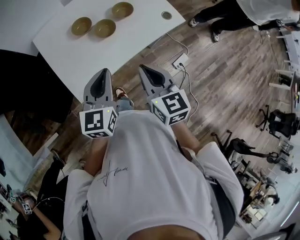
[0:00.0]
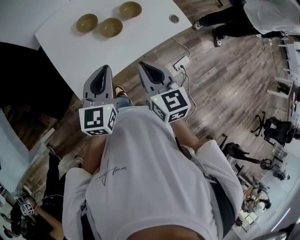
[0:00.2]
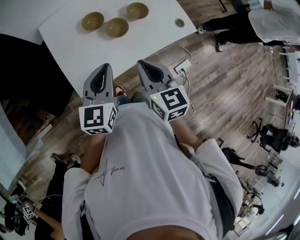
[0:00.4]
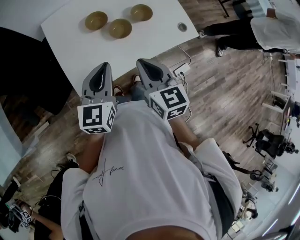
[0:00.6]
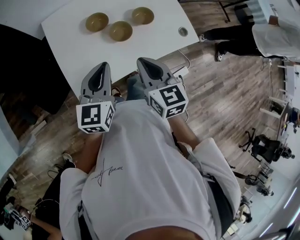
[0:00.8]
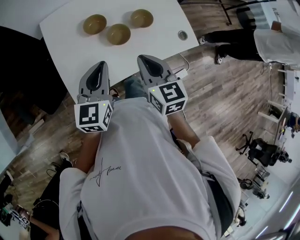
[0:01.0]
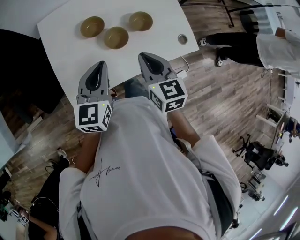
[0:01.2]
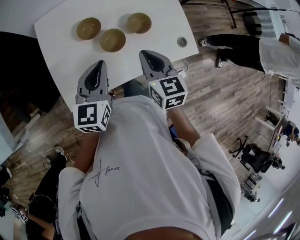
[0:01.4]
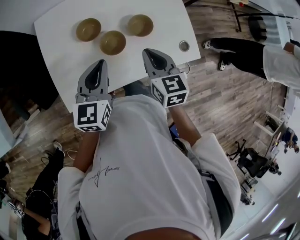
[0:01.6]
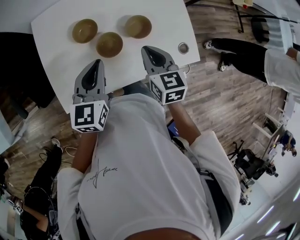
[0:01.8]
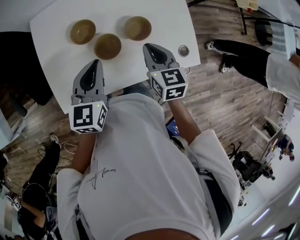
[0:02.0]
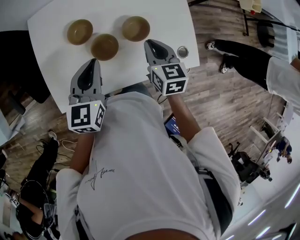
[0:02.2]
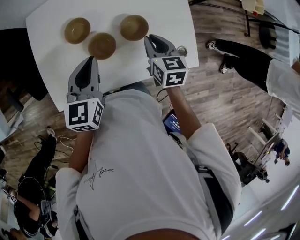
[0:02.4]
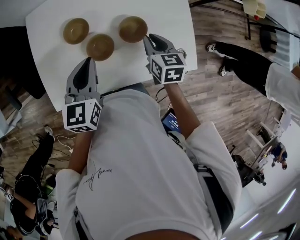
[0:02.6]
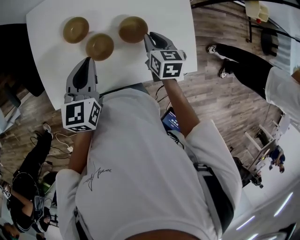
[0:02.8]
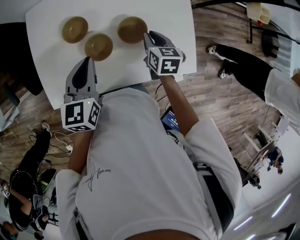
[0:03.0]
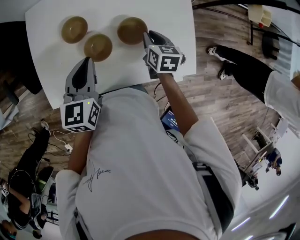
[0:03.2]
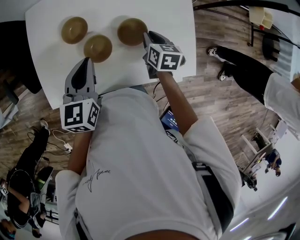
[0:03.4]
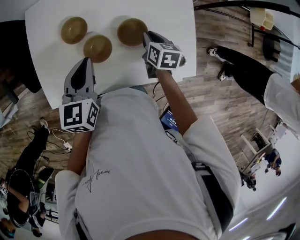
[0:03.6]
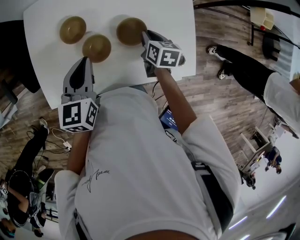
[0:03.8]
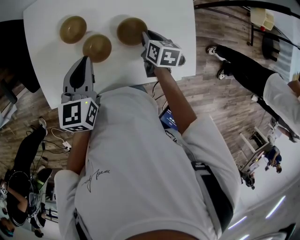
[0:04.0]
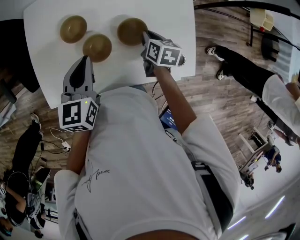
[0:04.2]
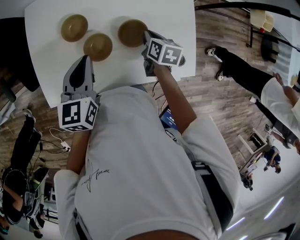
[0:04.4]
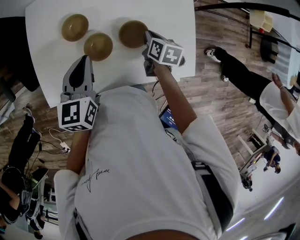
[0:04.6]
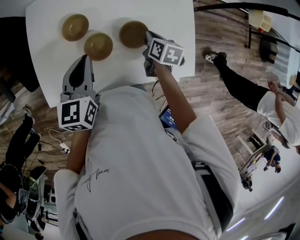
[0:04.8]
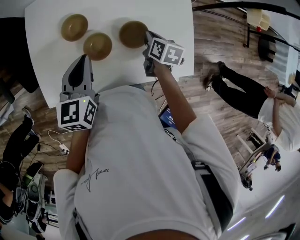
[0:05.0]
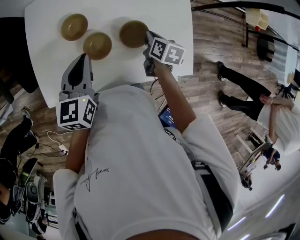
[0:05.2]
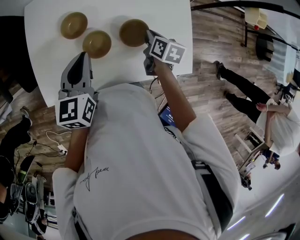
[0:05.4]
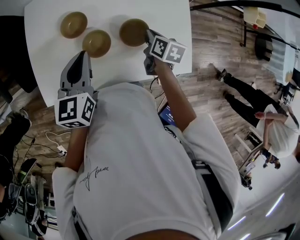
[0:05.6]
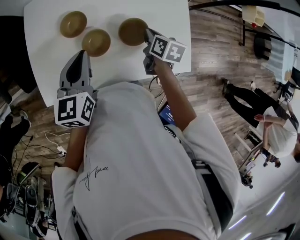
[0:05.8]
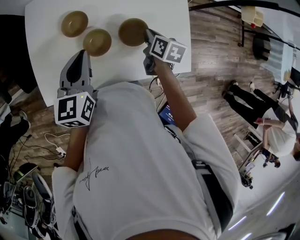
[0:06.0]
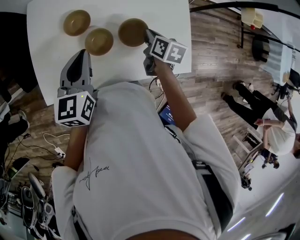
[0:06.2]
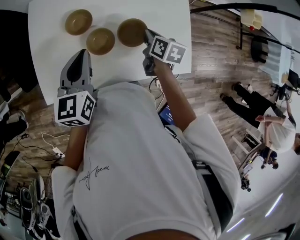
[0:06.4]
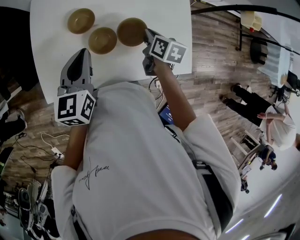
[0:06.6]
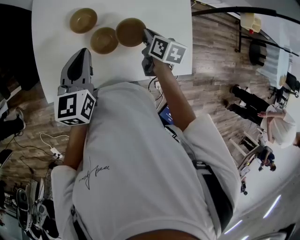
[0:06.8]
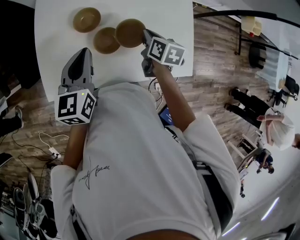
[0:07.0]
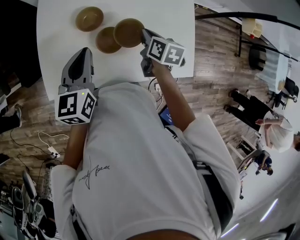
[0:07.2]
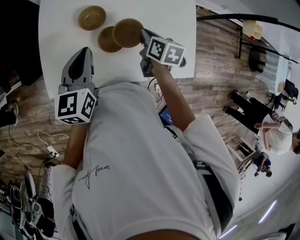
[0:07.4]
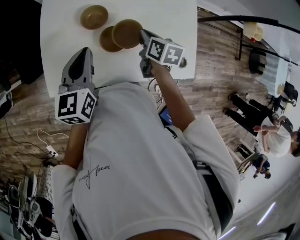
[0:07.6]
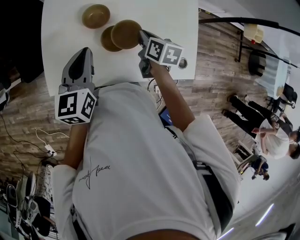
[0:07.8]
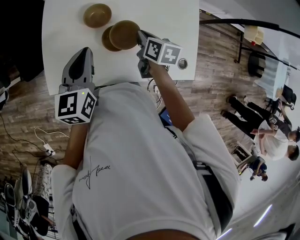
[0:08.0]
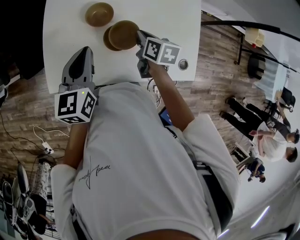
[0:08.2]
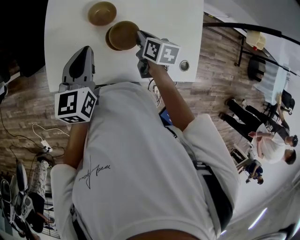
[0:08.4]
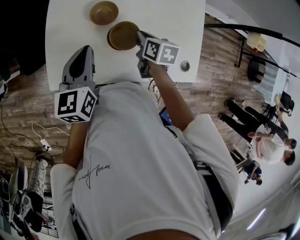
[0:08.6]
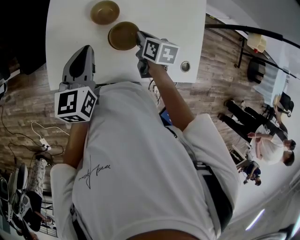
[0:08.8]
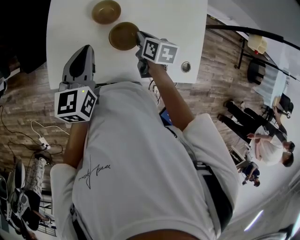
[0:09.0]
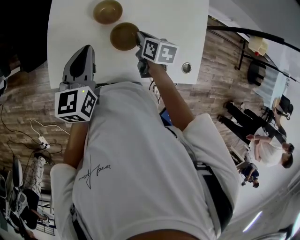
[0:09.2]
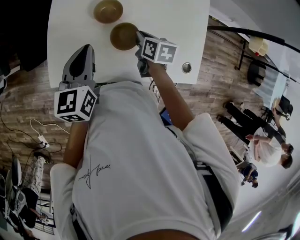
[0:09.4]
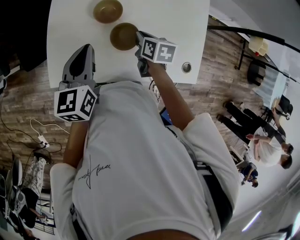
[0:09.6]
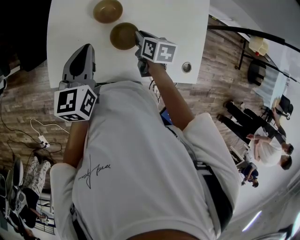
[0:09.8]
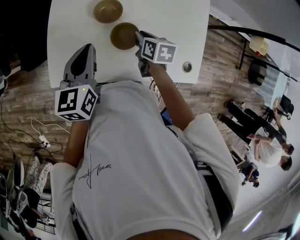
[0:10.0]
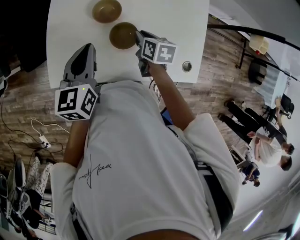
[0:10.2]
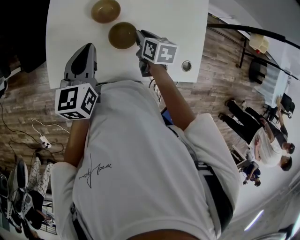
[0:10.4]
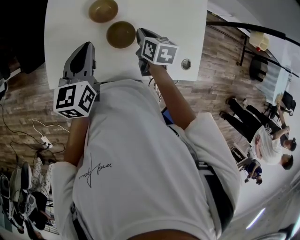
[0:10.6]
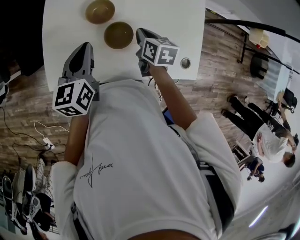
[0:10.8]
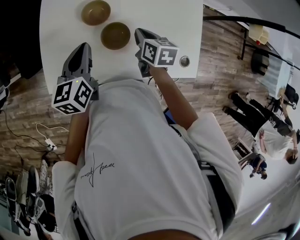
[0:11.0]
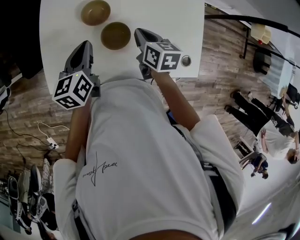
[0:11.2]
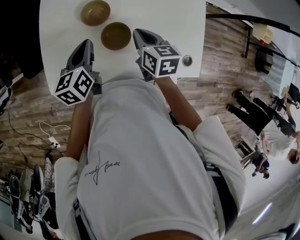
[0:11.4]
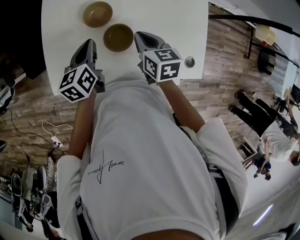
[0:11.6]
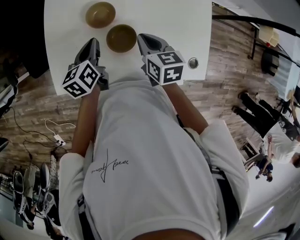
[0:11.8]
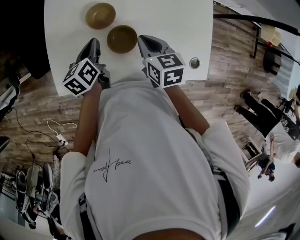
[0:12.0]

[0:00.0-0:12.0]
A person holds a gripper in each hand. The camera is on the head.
0:00.0 to 0:01.6: The grippers both shift forward by approximately 20 cm.
0:01.6 to 0:03.0: The left gripper changes place by approximately 5 cm; the right gripper moves downward, forward and to the right, approximately 20 cm.
0:03.0 to 0:06.0: The grippers make only small movements.
0:06.0 to 0:07.6: The right gripper is displaced to the left by about 10 cm. Meanwhile the left gripper travels to the left by some 5 cm.
0:07.6 to 0:09.0: The right gripper moves roughly 5 cm.
0:09.0 to 0:10.4: The two grippers keep their place.
0:10.4 to 0:12.0: The right gripper goes roughly 5 cm upward. The left gripper goes approximately 10 cm downward, and rotates approximately 20 degrees.

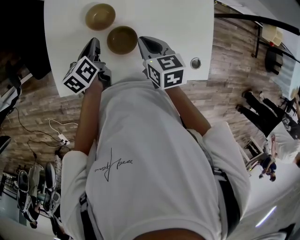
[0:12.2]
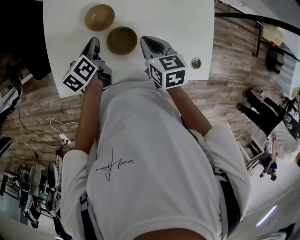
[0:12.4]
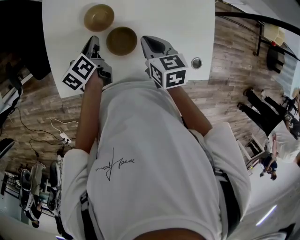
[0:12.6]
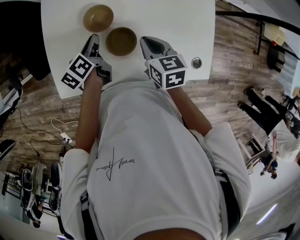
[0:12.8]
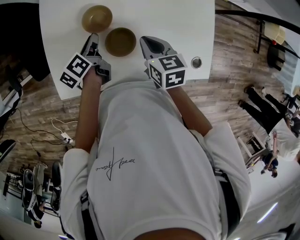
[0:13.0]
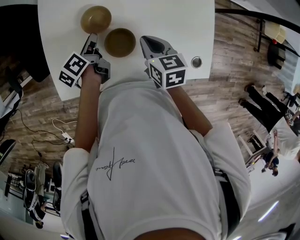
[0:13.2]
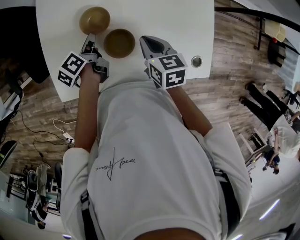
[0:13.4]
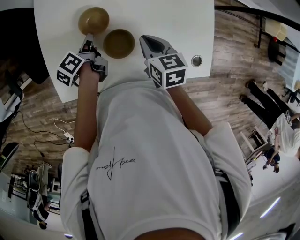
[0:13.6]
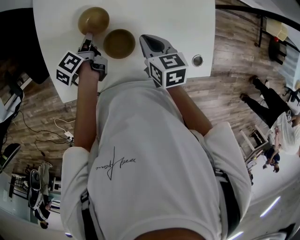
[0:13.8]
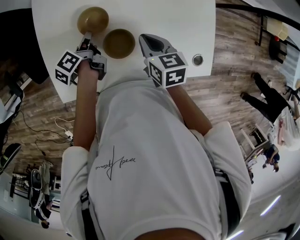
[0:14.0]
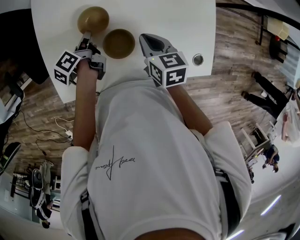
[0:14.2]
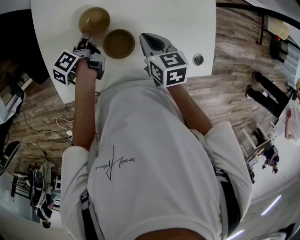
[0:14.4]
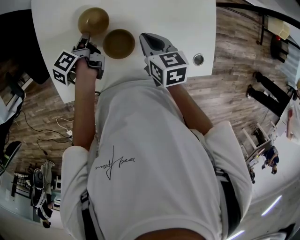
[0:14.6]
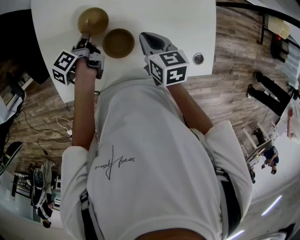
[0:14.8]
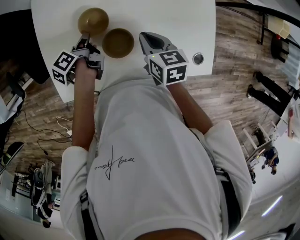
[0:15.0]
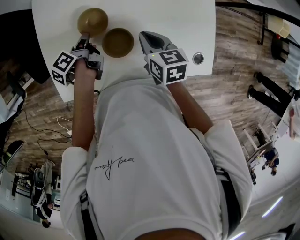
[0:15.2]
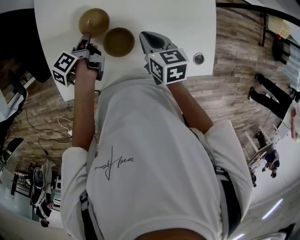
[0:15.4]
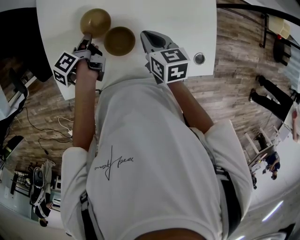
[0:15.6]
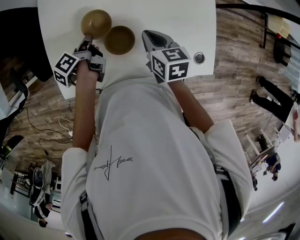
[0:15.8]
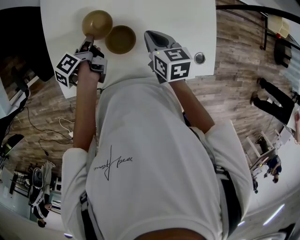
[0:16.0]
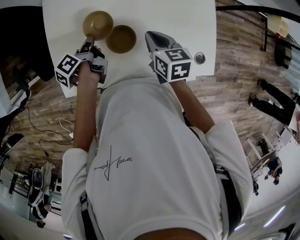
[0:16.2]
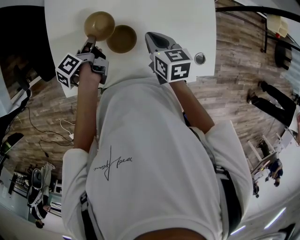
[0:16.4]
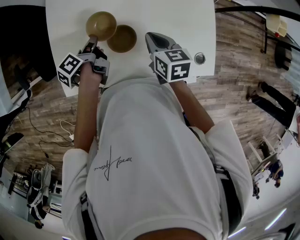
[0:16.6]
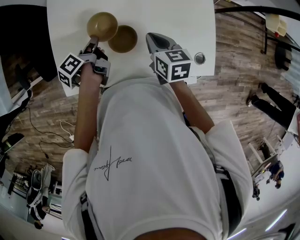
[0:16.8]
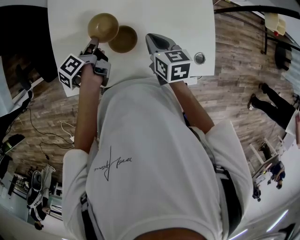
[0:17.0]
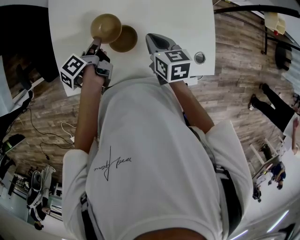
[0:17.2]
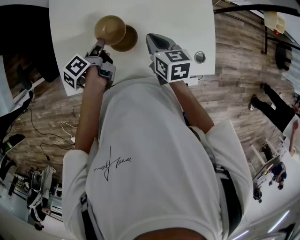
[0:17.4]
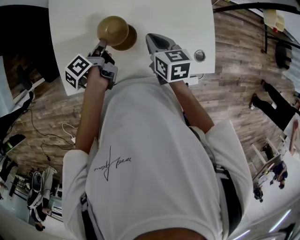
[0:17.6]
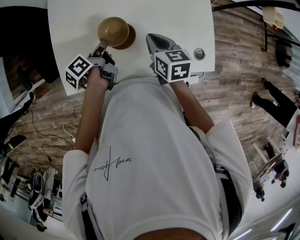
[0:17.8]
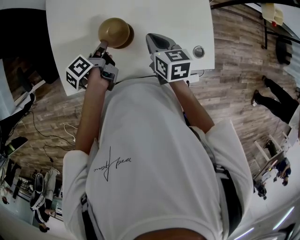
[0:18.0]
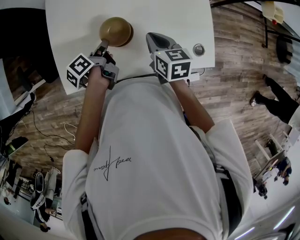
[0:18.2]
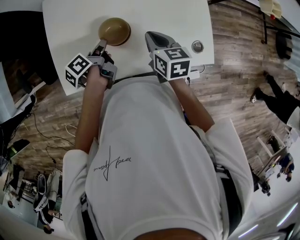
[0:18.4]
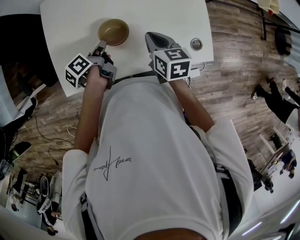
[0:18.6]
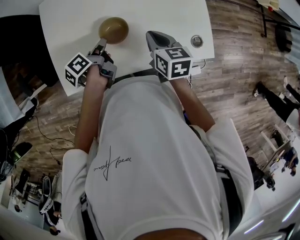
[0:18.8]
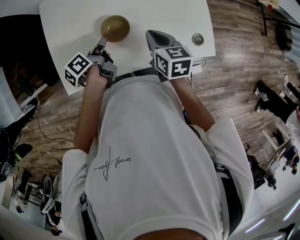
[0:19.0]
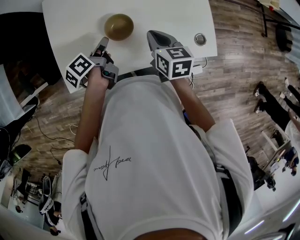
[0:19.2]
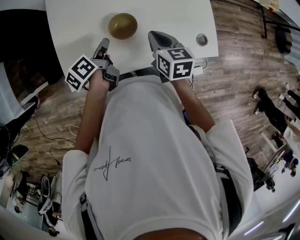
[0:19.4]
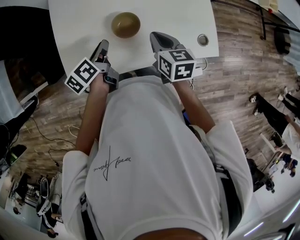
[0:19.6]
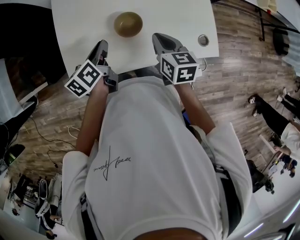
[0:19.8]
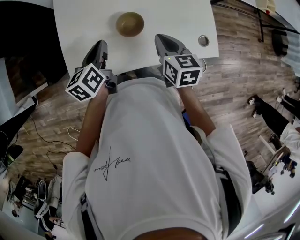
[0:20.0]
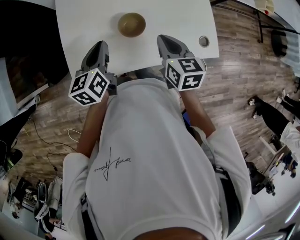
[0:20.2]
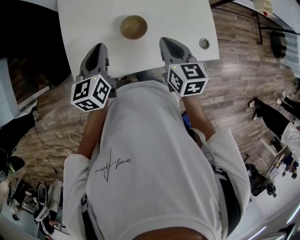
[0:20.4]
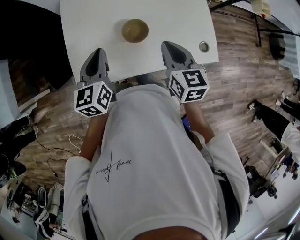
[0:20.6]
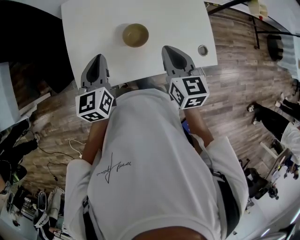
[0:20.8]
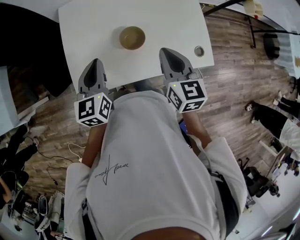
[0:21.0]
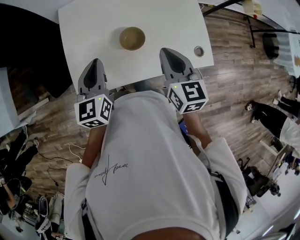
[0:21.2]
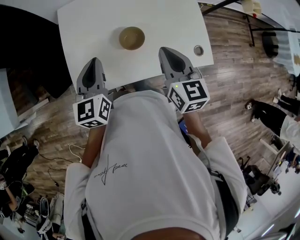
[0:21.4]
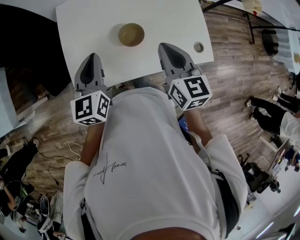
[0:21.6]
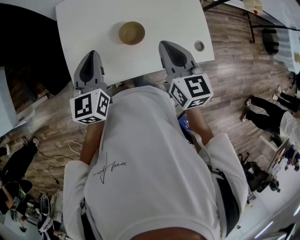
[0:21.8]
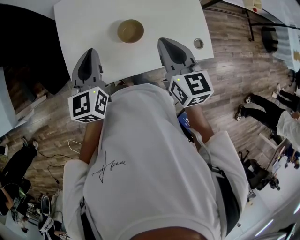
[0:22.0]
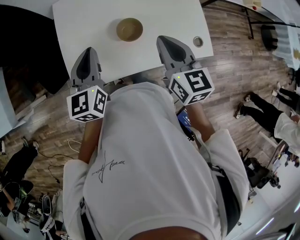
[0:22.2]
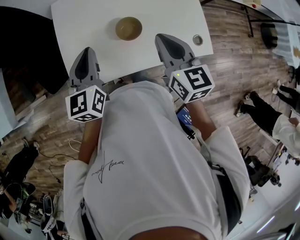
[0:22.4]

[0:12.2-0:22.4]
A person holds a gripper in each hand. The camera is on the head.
0:12.2 to 0:13.6: The left gripper shifts by some 5 cm, and changes its angle by approximately 30 degrees.
0:13.6 to 0:15.2: The grippers stay close to where they were, moving slightly.
0:15.2 to 0:16.6: The left gripper ends up some 5 cm from where it was.
0:16.6 to 0:18.0: The left gripper changes place by approximately 5 cm.
0:18.0 to 0:19.4: The grippers stay close to where they were, moving slightly.
0:19.4 to 0:21.0: The grippers both shift upward by about 15 cm. The left gripper rotates around the line of its fingers by some 50 degrees, clockwise from behind, and closes its fingers, while the right gripper swivels about 20 degrees.
0:21.0 to 0:22.4: The grippers move only a little.

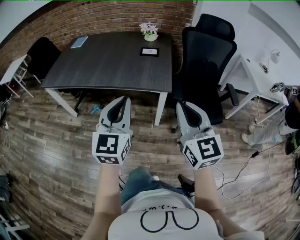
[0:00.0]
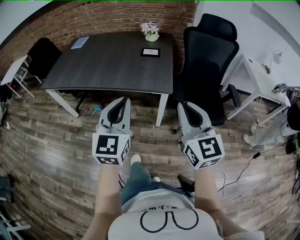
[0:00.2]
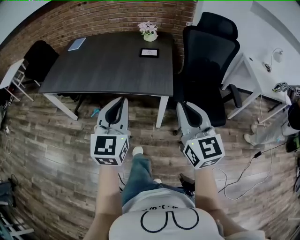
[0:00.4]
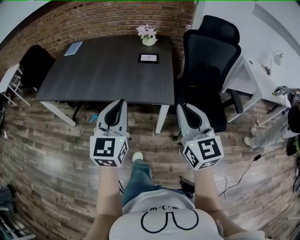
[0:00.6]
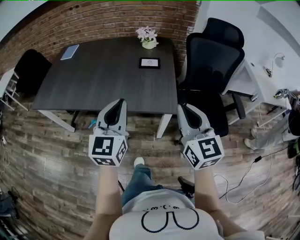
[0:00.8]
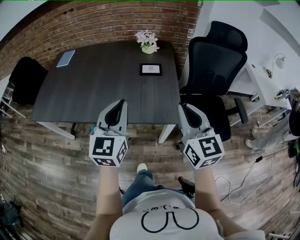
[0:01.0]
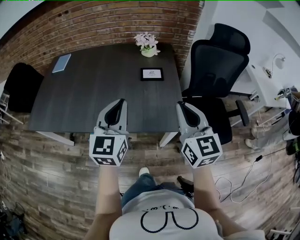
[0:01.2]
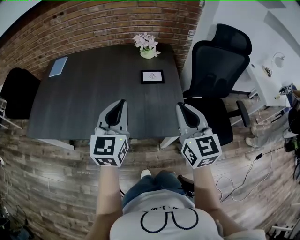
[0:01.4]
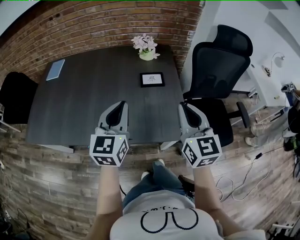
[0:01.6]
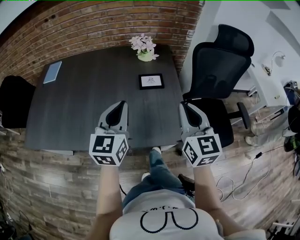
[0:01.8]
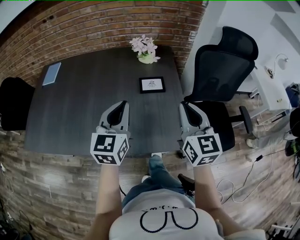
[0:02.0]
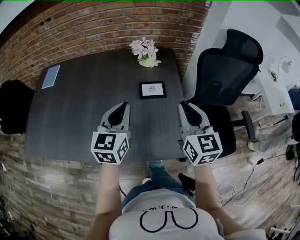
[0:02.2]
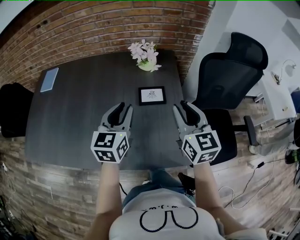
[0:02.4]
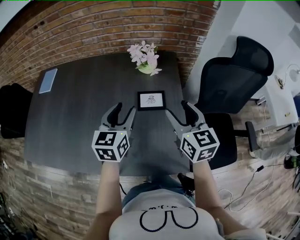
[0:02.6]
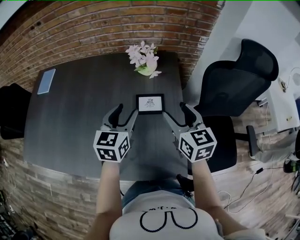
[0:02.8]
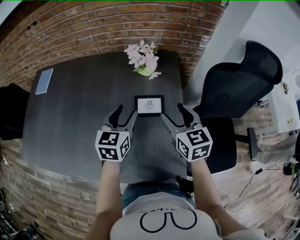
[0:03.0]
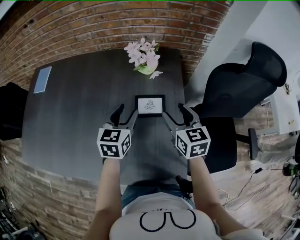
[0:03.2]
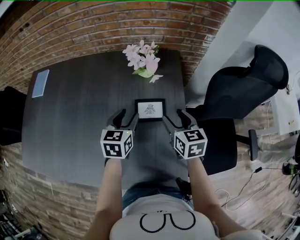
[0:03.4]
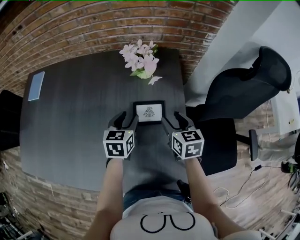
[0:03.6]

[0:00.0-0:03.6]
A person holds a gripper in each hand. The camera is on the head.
0:00.0 to 0:01.8: The pair of grippers is taken forward, approximately 40 cm.
0:01.8 to 0:03.6: The two grippers go approximately 35 cm forward and downward. The left gripper tips its fingers downward by roughly 30 degrees, and opens its fingers, while the right gripper changes its angle by approximately 30 degrees, and opens up.
